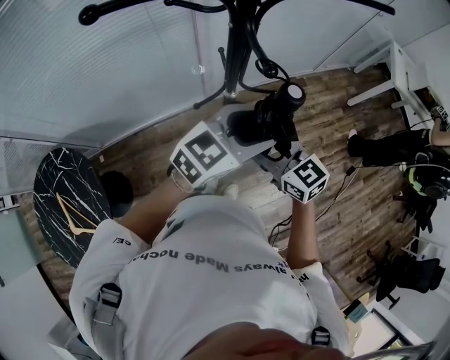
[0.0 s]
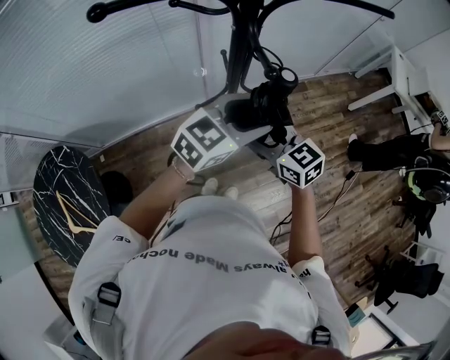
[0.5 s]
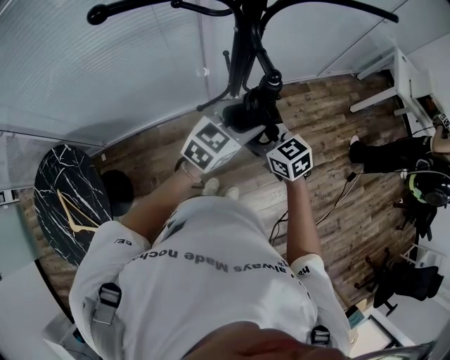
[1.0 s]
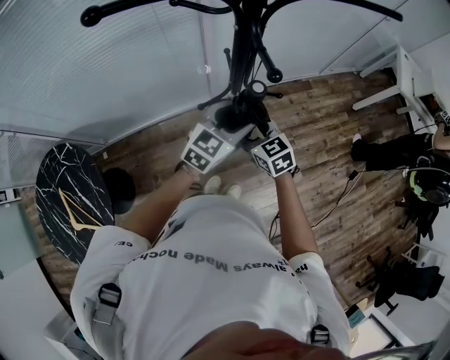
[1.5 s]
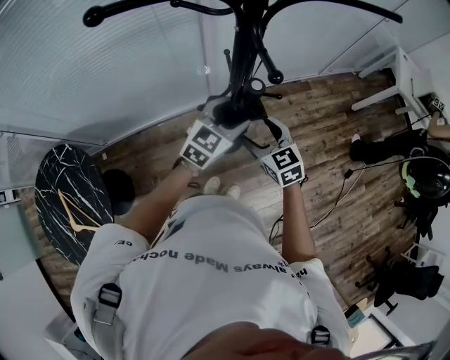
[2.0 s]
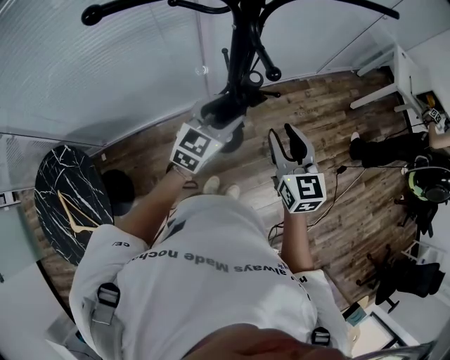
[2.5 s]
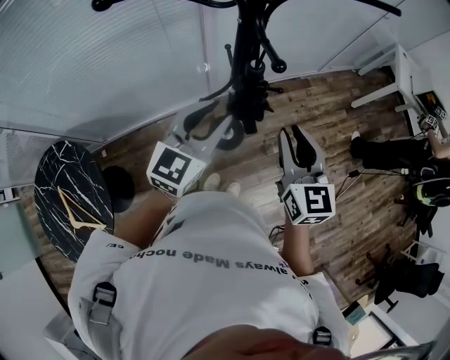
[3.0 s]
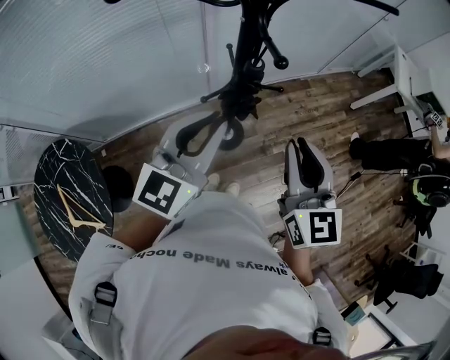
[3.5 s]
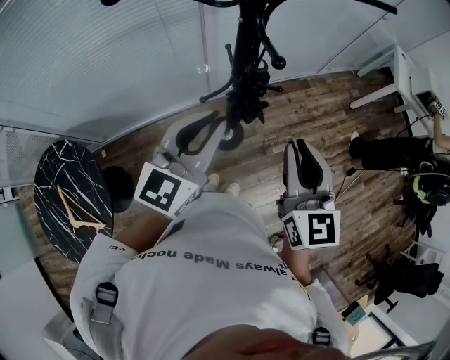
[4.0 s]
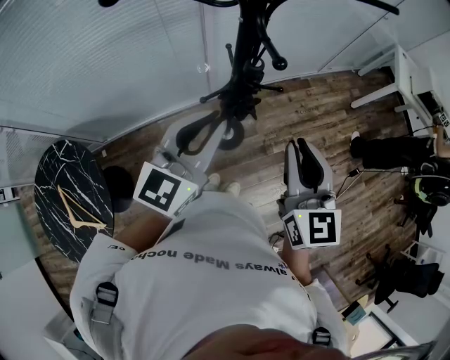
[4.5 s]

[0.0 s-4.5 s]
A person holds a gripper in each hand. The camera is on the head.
0.0 to 2.0 s: The left gripper moves downward, forward and to the left, roughly 15 cm, while the right gripper moves downward and forward, roughly 10 cm.
2.0 to 4.5 s: The two grippers go about 20 cm upward and backward. The right gripper changes its angle by roughly 30 degrees, and closes up. The left gripper closes its fingers.

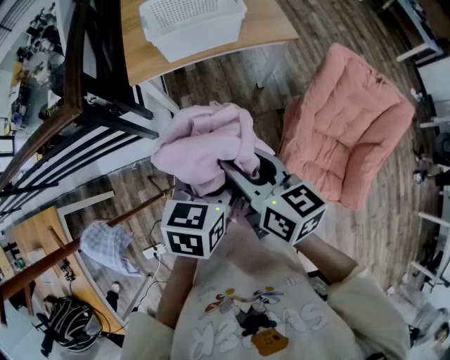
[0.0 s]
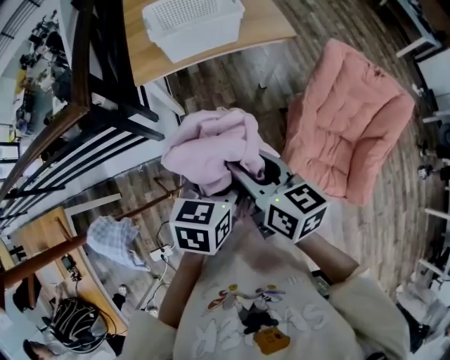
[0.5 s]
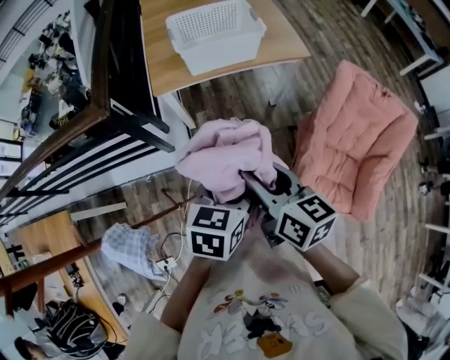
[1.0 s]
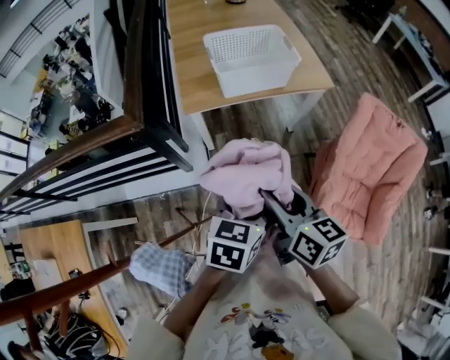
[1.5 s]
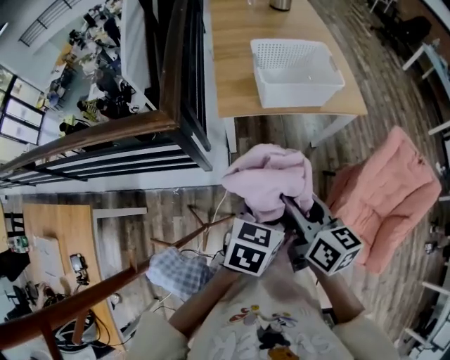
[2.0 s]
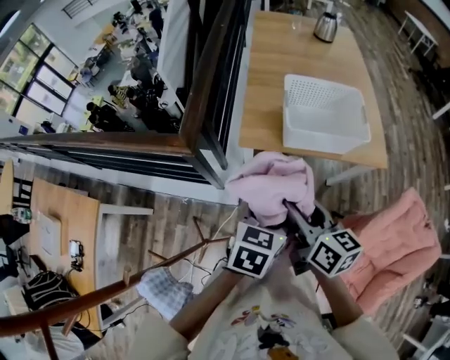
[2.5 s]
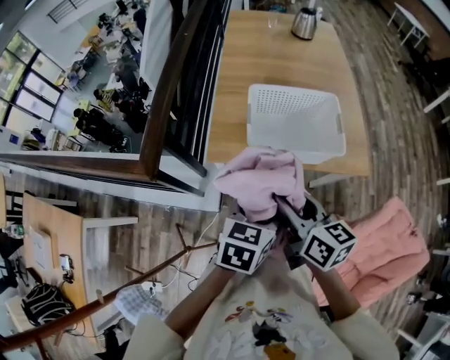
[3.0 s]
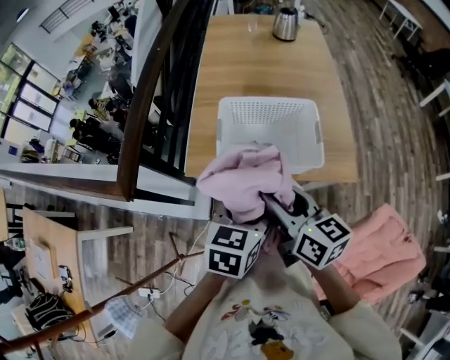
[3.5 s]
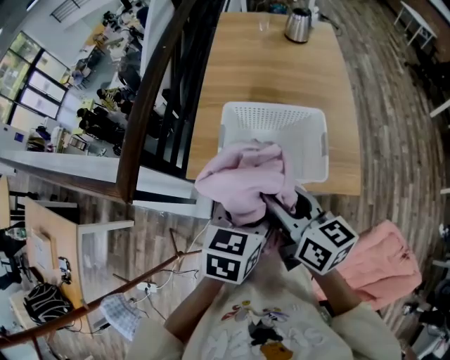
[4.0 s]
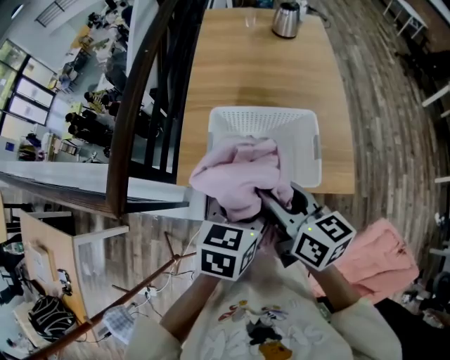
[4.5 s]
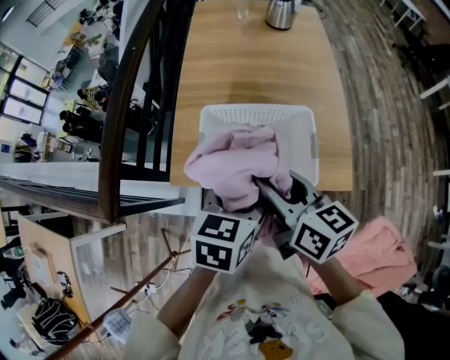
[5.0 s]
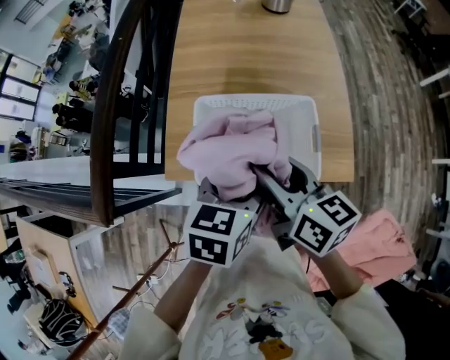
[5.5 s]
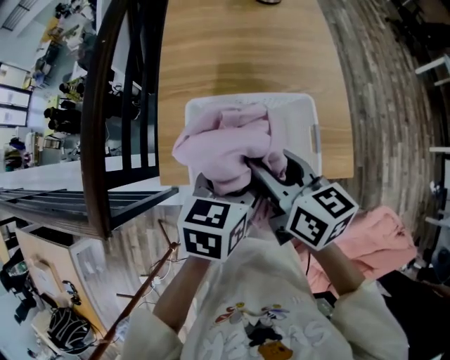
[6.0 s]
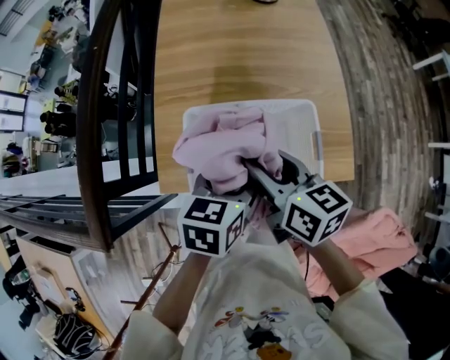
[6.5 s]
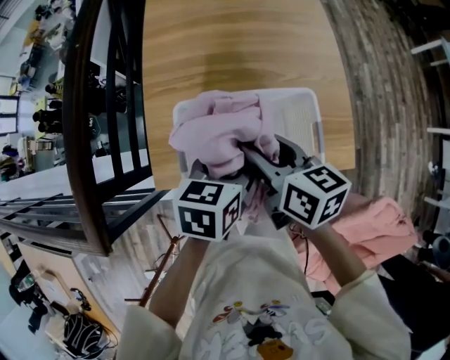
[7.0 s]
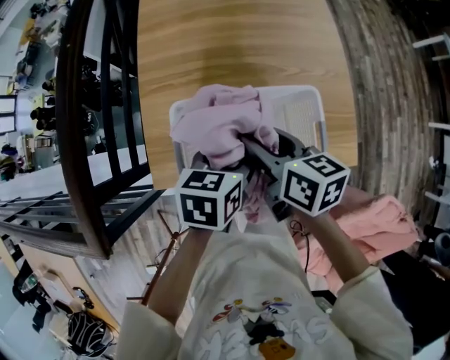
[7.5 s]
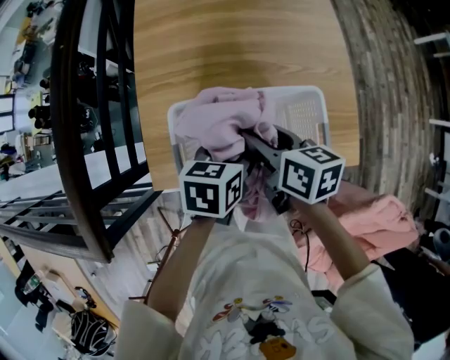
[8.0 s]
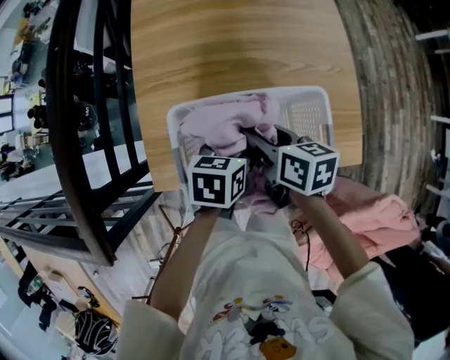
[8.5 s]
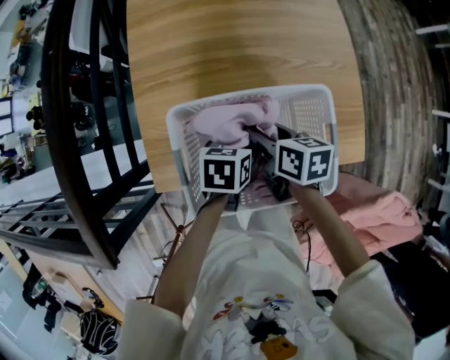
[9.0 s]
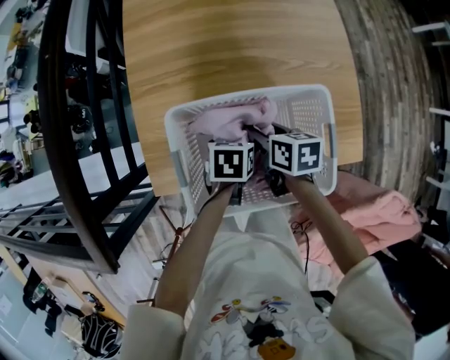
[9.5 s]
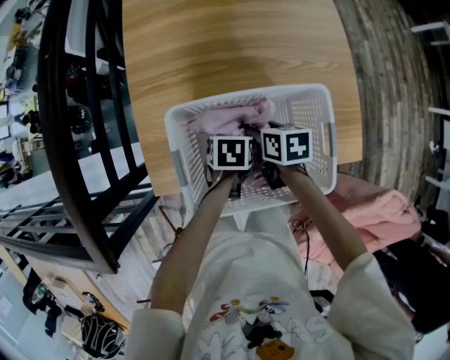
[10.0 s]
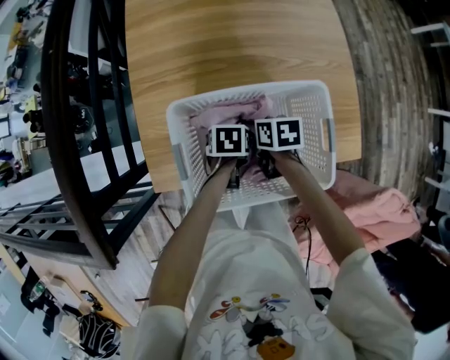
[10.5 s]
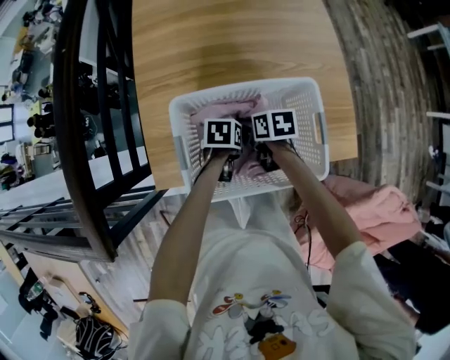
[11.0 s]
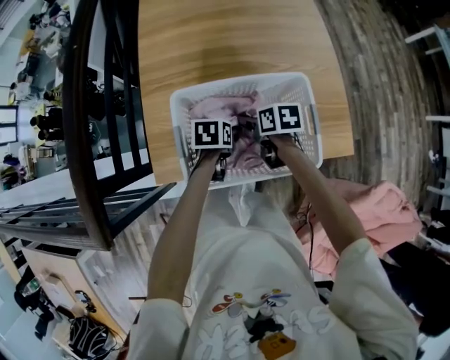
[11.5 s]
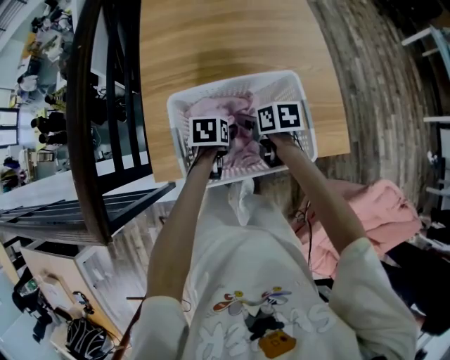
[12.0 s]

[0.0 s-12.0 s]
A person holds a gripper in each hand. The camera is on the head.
0.0 to 2.0 s: The two grippers go roughly 10 cm to the left.
2.0 to 4.0 s: The left gripper goes roughly 30 cm forward and to the right. The right gripper is displaced forward by some 30 cm, and rotates about 20 degrees.
4.0 to 6.0 s: The two grippers go some 10 cm forward.
6.0 to 8.0 s: The grippers both shift downward and forward by some 15 cm.
8.0 to 10.0 s: The grippers both shift downward by some 15 cm. The left gripper changes its angle by some 20 degrees.
10.0 to 12.0 s: The left gripper shifts by about 5 cm.

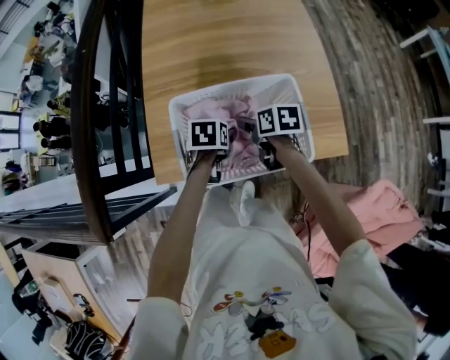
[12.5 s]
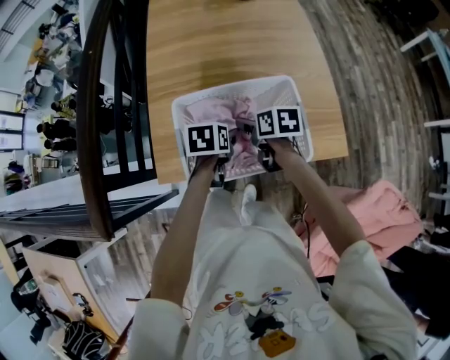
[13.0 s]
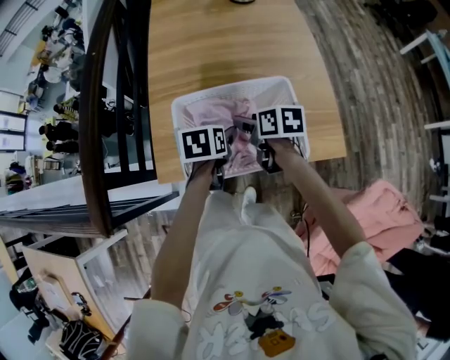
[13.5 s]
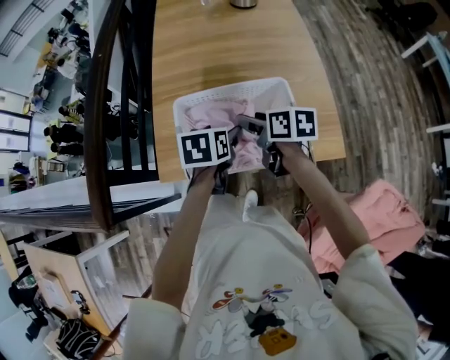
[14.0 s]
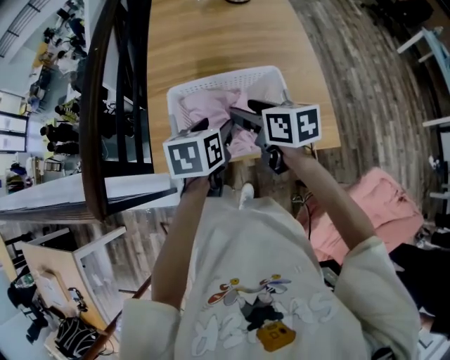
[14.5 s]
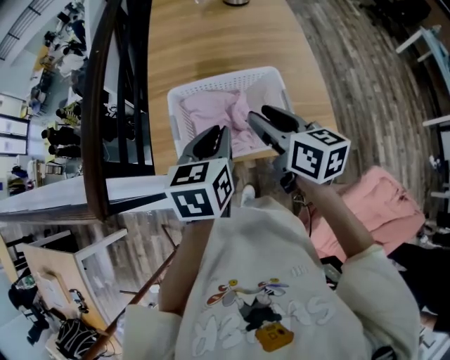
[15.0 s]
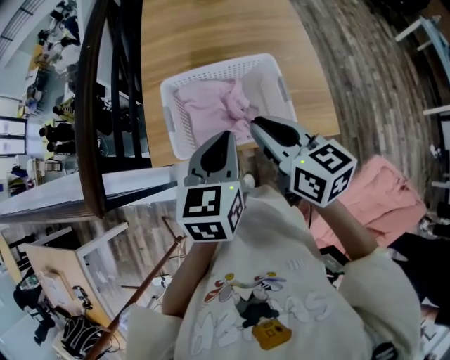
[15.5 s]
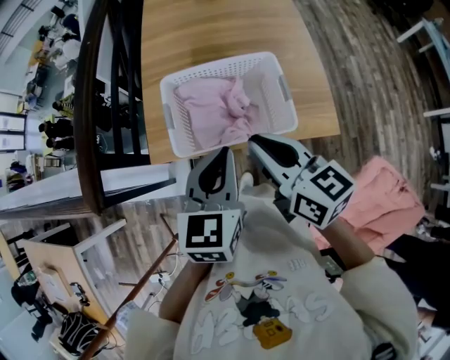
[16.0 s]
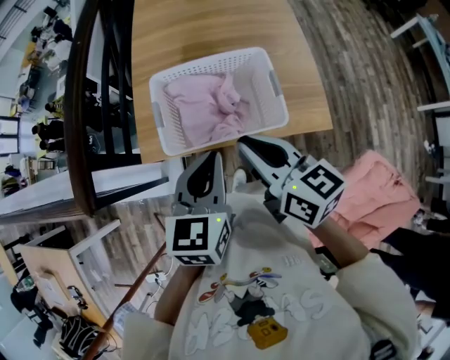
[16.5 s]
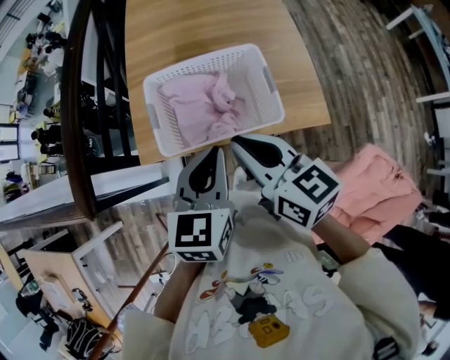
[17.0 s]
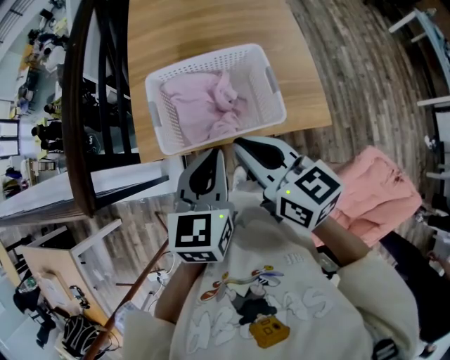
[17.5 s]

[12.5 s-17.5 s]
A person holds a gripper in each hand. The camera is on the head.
12.5 to 15.0 s: Both grippers travel together upward, about 25 cm. The left gripper tips its fingers upward by about 30 degrees, and closes up. Meanwhile the right gripper tips its fingers upward by about 30 degrees.
15.0 to 17.5 s: The left gripper goes some 10 cm backward; the right gripper goes approximately 10 cm backward and to the left, and closes its fingers.

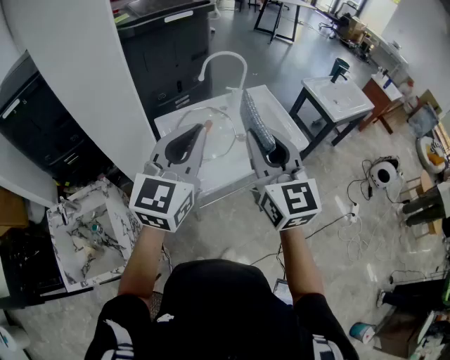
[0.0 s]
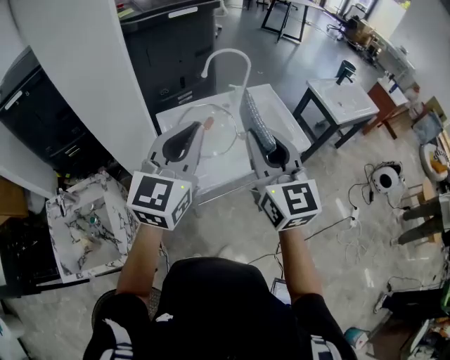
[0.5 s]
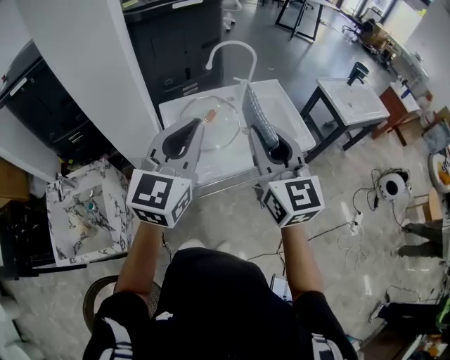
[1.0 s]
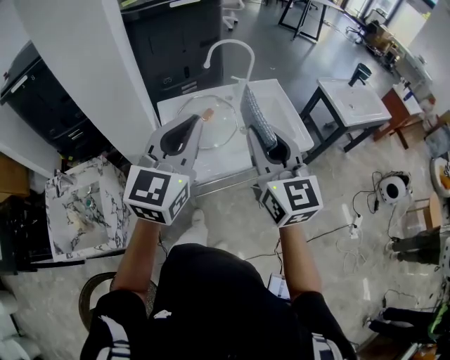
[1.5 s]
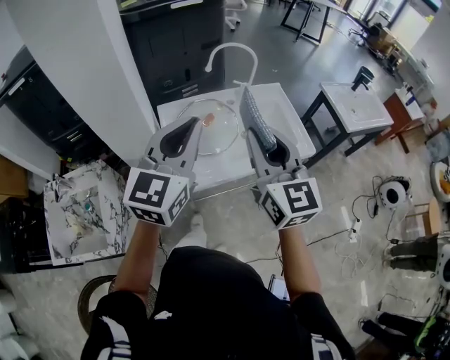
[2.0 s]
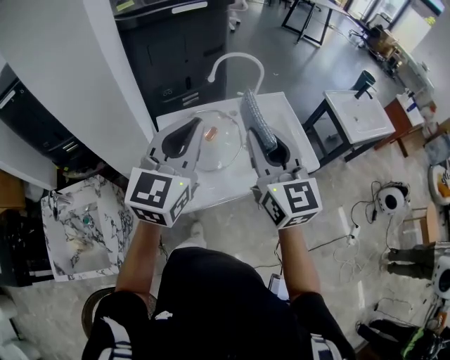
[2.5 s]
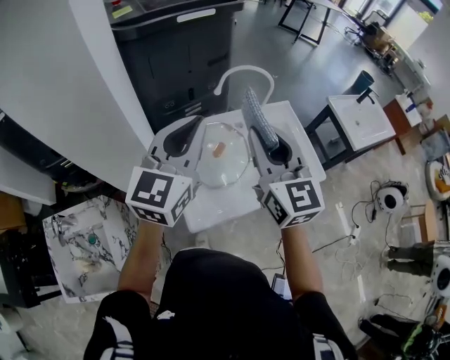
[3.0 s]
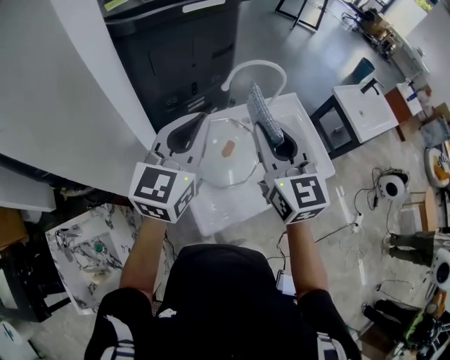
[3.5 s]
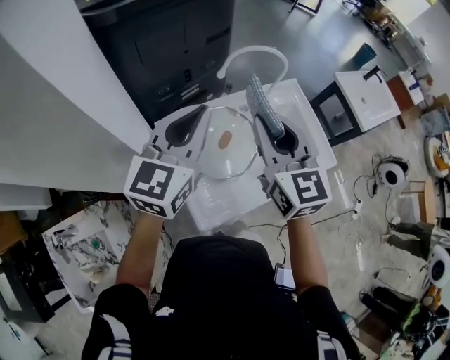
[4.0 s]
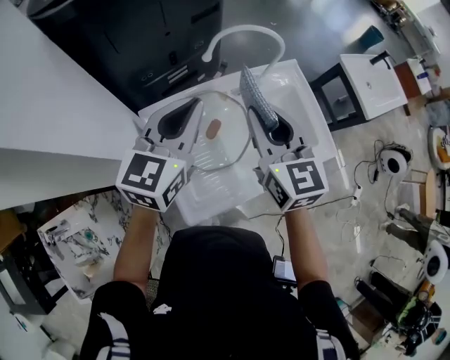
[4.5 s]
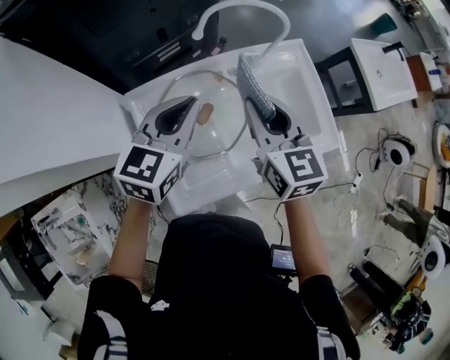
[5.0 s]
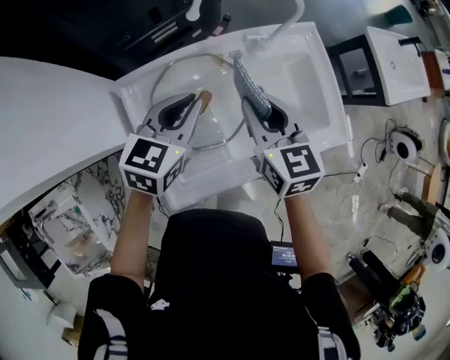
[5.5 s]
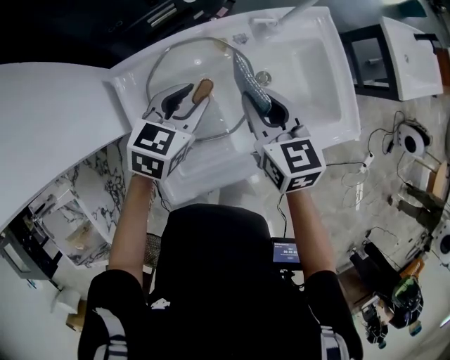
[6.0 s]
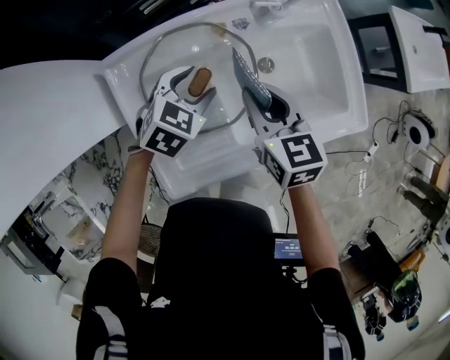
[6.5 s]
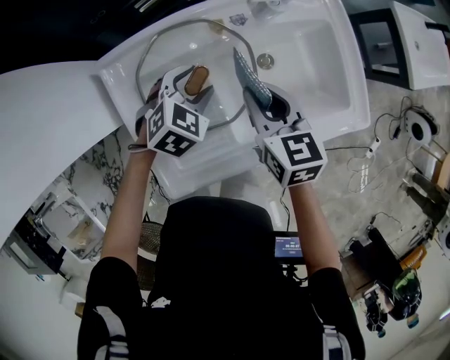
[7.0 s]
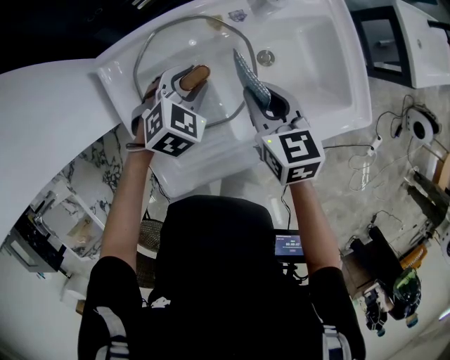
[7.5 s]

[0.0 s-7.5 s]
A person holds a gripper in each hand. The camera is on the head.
0.0 to 2.0 s: The right gripper is displaced to the right by some 5 cm; the left gripper moves some 5 cm.
2.0 to 4.0 s: The left gripper heads forward, covering some 25 cm. Meanwhile the right gripper heads forward and to the left, covering about 25 cm.
4.0 to 5.5 s: Both grippers move downward, about 20 cm. The left gripper rotates approximately 30 degrees. The right gripper changes its angle by roughly 20 degrees.
5.5 to 7.5 s: Both grippers move downward, approximately 15 cm. The left gripper swivels about 40 degrees, and opens its fingers.
